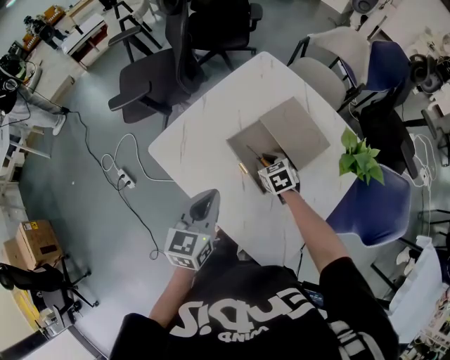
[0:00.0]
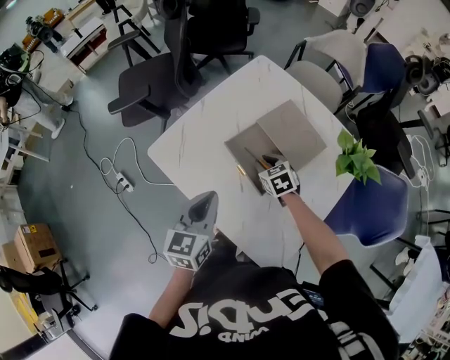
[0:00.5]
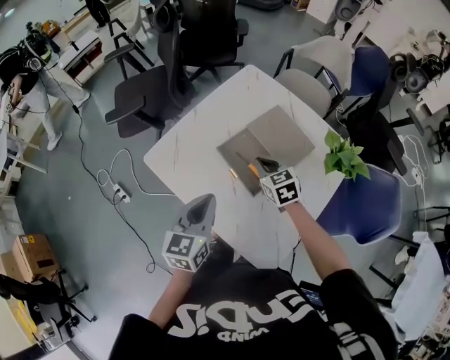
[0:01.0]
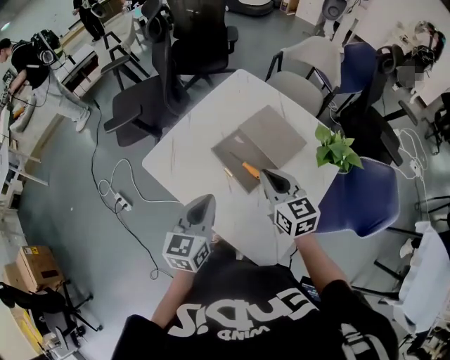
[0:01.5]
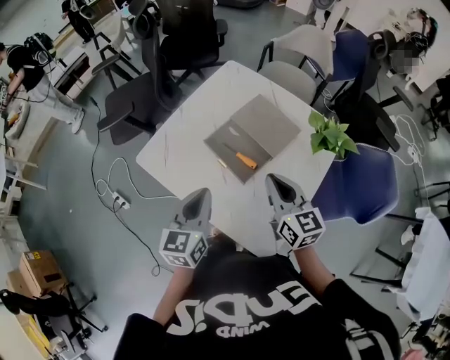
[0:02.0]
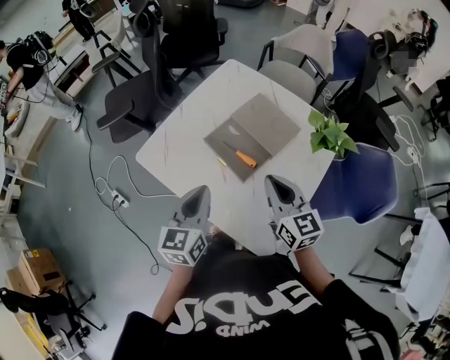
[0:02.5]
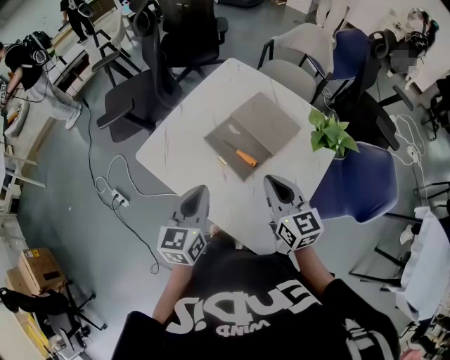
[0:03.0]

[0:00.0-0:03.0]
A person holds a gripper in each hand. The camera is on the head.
0:00.0 to 0:01.5: The left gripper shifts by some 5 cm. The right gripper goes approximately 25 cm upward and backward, and points its fingers approximately 30 degrees further upward.
0:01.5 to 0:03.0: The right gripper travels backward by about 5 cm.

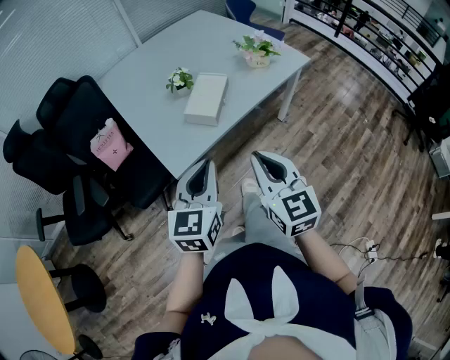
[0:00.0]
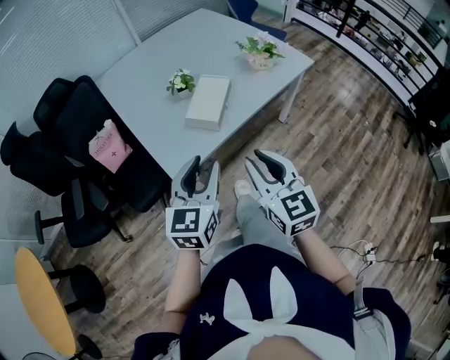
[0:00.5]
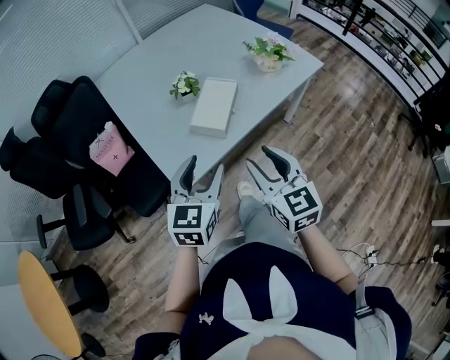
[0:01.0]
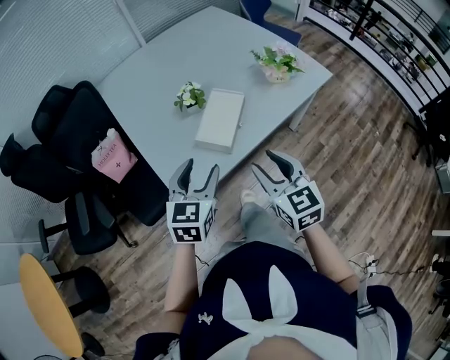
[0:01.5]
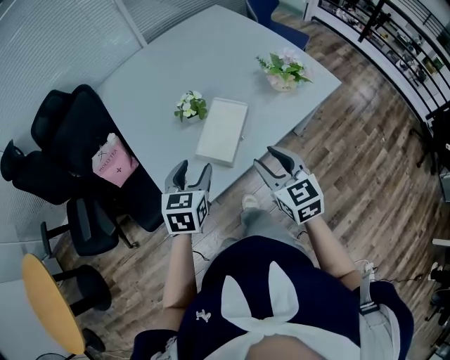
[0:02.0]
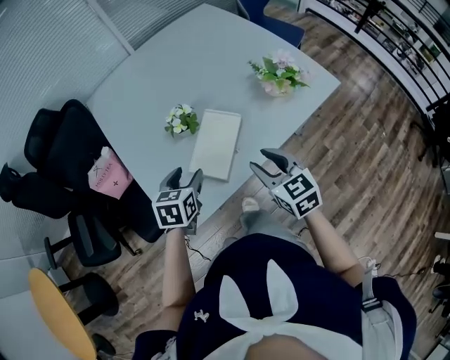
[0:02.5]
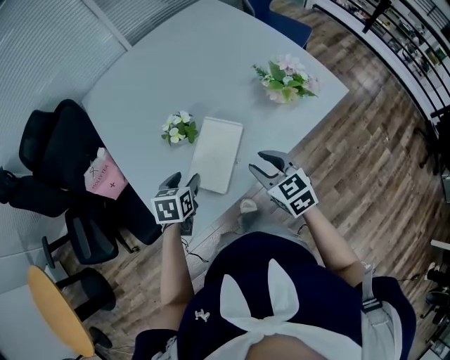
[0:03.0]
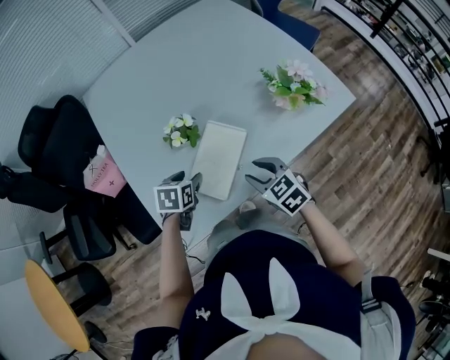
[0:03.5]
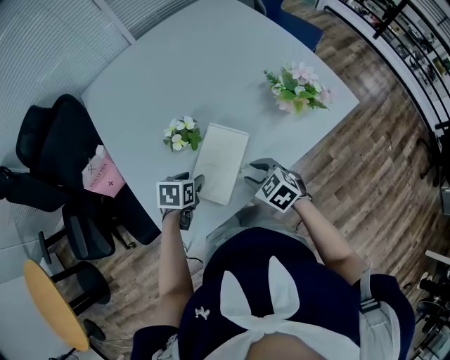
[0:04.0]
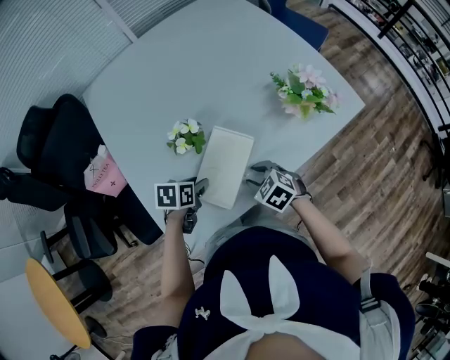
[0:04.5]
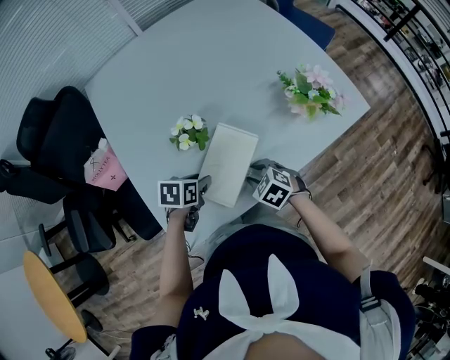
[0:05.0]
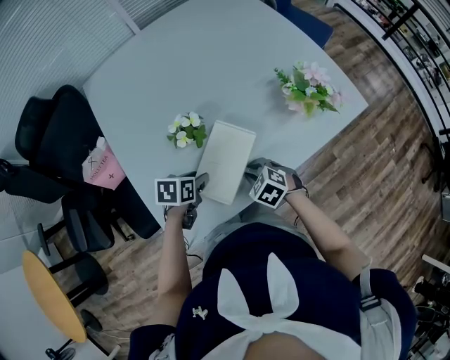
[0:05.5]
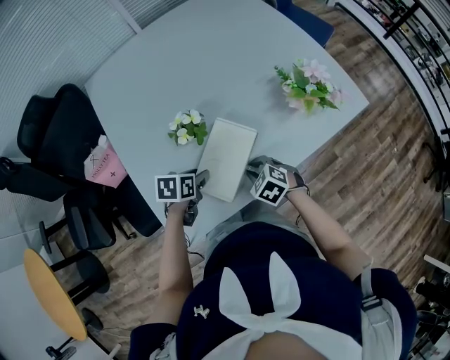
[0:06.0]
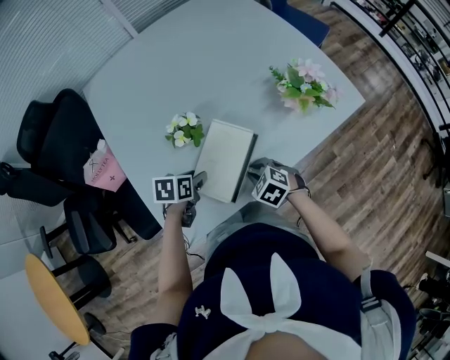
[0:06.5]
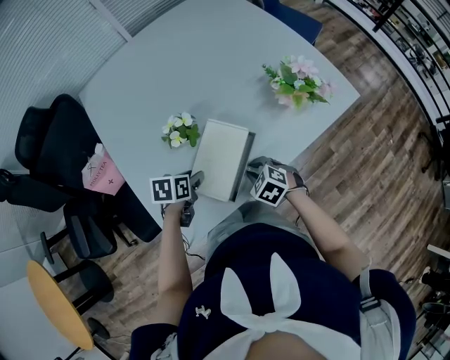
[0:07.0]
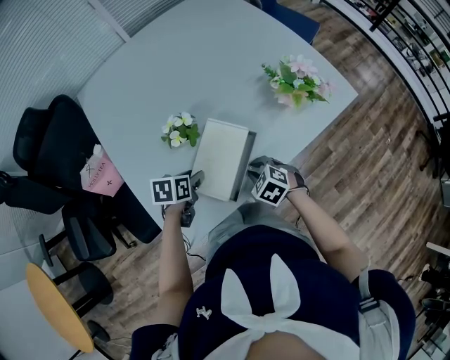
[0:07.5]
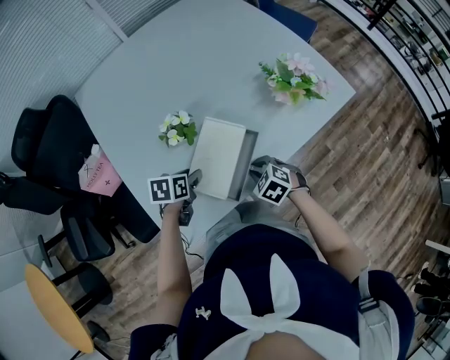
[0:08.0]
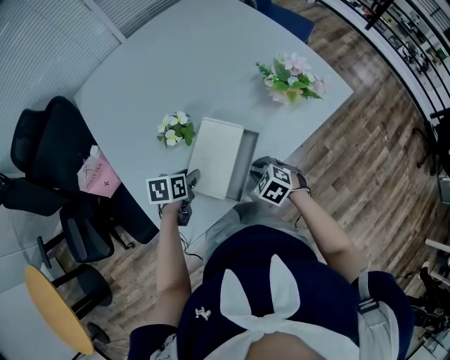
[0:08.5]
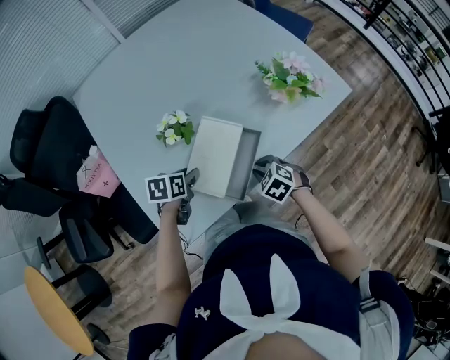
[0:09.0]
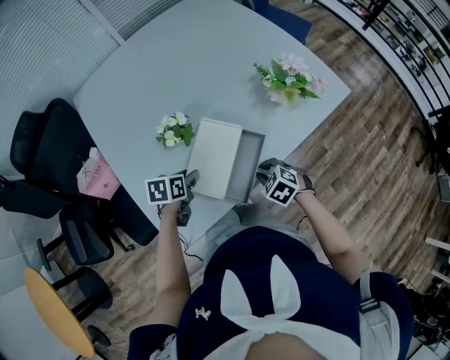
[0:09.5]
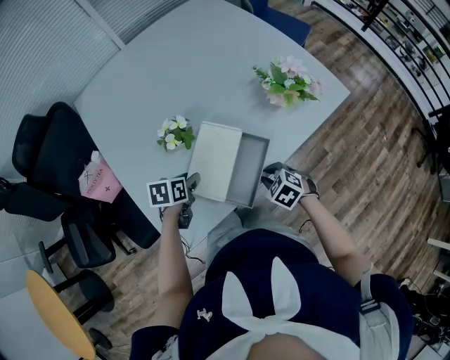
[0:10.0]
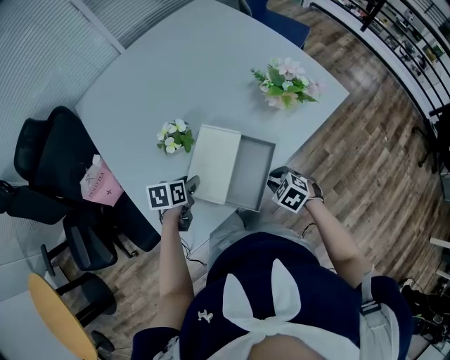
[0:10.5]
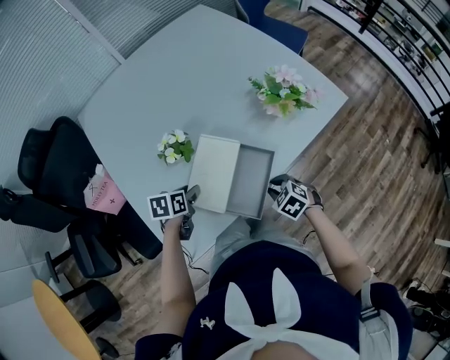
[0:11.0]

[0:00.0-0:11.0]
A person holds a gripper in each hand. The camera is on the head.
0:00.0 to 0:02.0: Both grippers travel together forward, approximately 25 cm. The left gripper swivels some 20 degrees, and opens up; the right gripper opens.
0:02.0 to 0:03.5: The grippers both shift downward and forward by about 20 cm. The left gripper swivels about 30 degrees. Meanwhile the right gripper turns by some 30 degrees.
0:03.5 to 0:05.5: The right gripper moves downward, some 10 cm, swivels roughly 20 degrees, and closes its fingers.
0:05.5 to 0:07.5: The grippers stay close to where they were, moving slightly.
0:07.5 to 0:09.0: The grippers make only small movements.
0:09.0 to 0:11.0: The right gripper ends up about 5 cm from where it was.

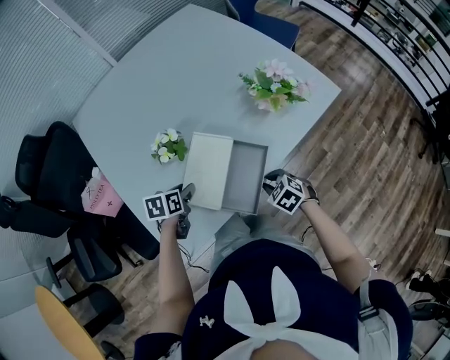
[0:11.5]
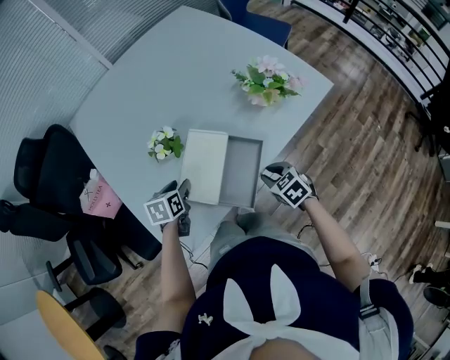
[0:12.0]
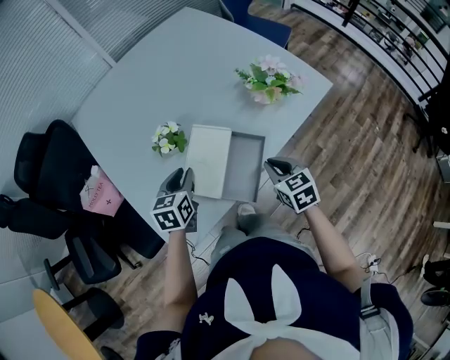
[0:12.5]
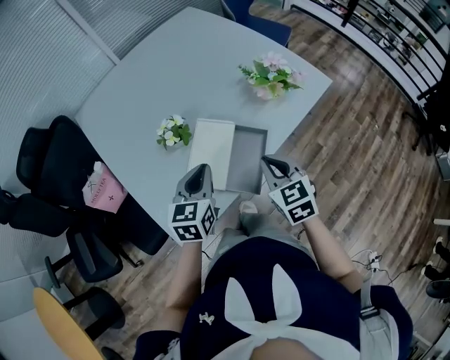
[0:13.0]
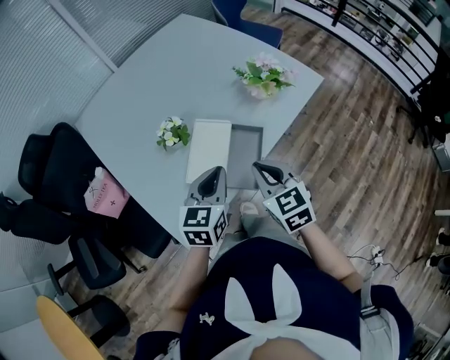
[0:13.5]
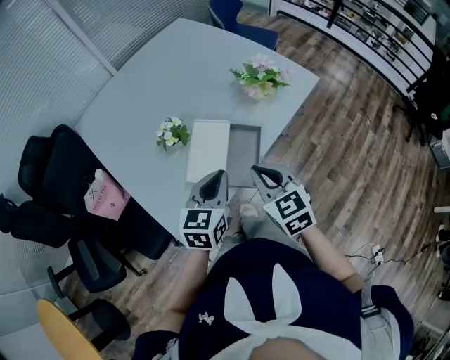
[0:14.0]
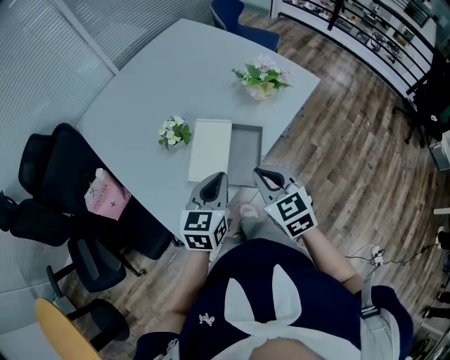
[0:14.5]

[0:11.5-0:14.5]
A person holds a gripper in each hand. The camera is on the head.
0:11.5 to 0:13.0: The right gripper is displaced upward by roughly 20 cm, and rotates approximately 40 degrees. Meanwhile the left gripper is displaced upward and to the right by roughly 20 cm, turns by about 40 degrees, and closes up.
0:13.0 to 0:14.5: Both grippers move backward, some 5 cm.

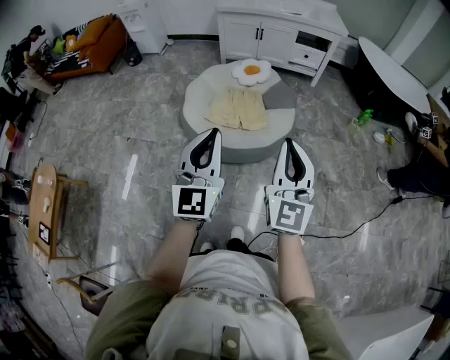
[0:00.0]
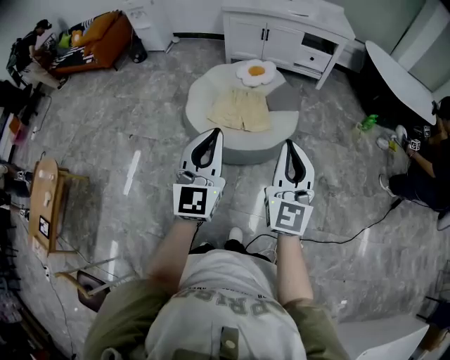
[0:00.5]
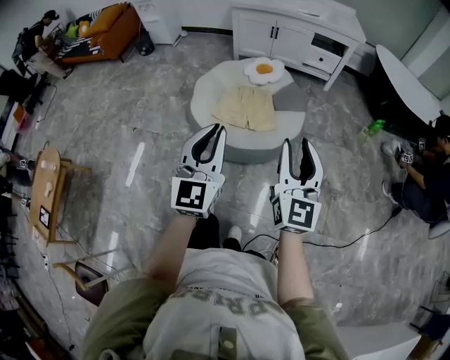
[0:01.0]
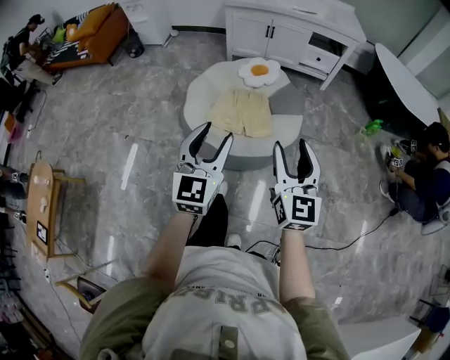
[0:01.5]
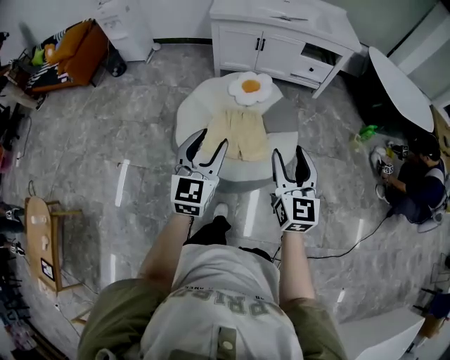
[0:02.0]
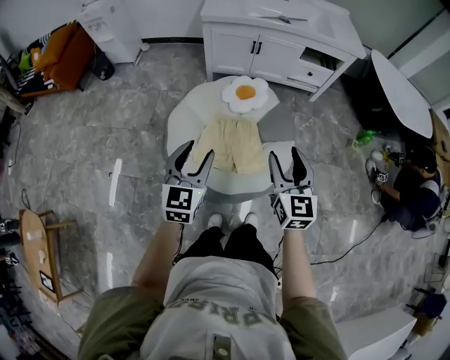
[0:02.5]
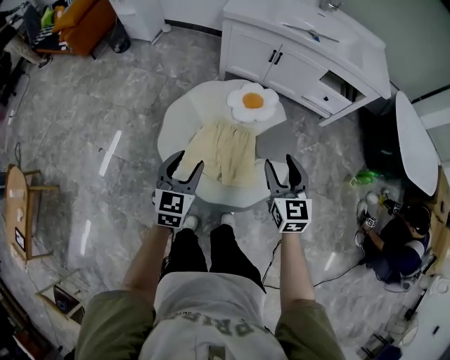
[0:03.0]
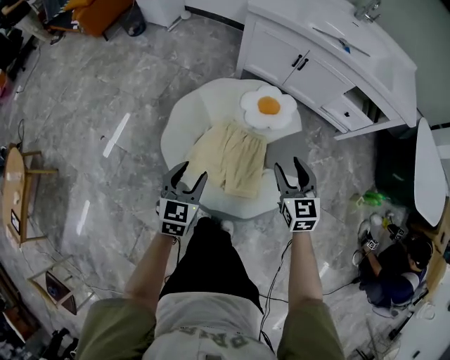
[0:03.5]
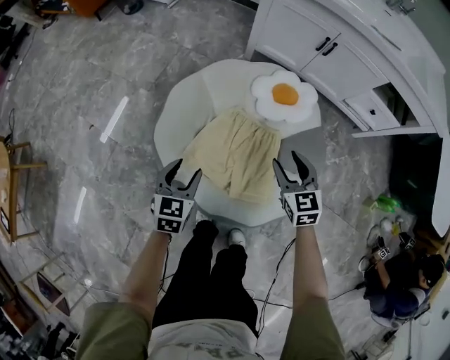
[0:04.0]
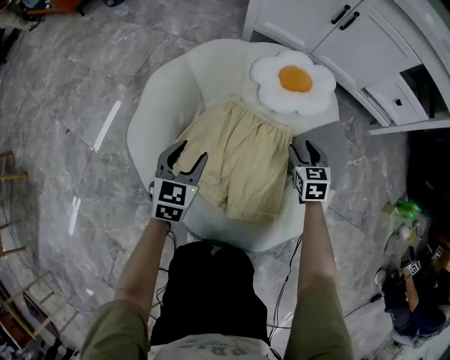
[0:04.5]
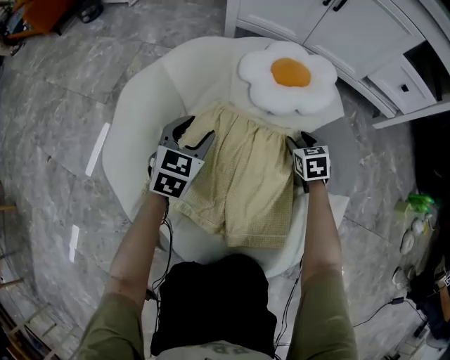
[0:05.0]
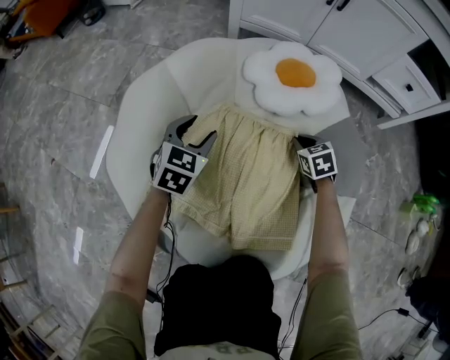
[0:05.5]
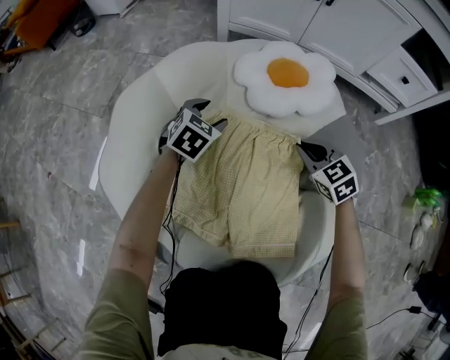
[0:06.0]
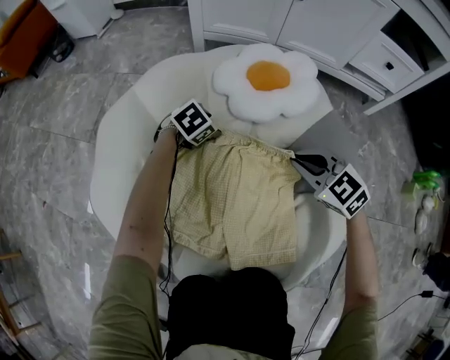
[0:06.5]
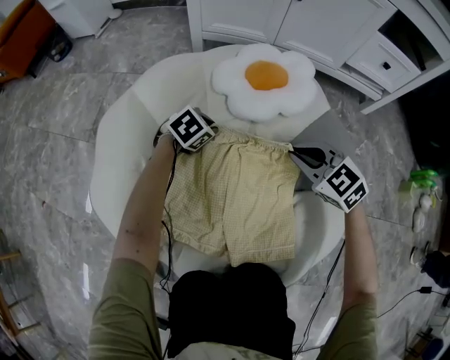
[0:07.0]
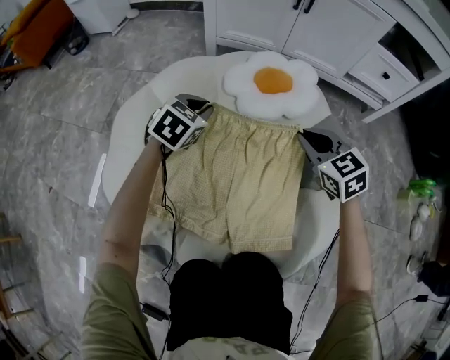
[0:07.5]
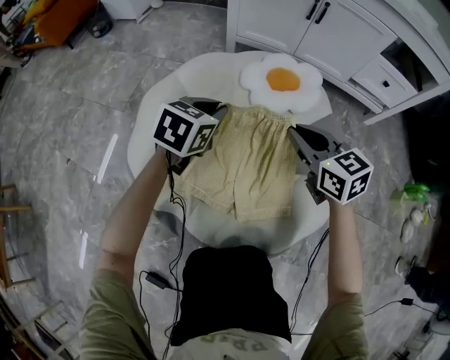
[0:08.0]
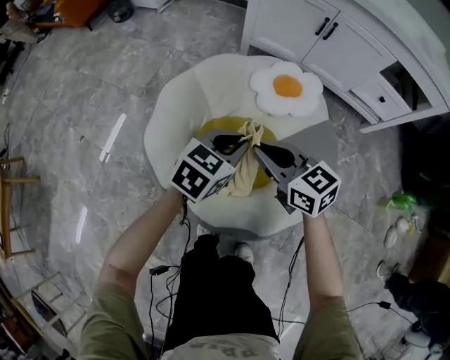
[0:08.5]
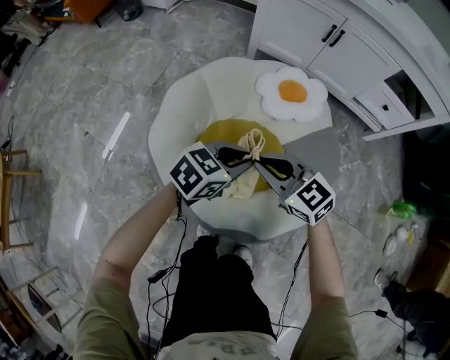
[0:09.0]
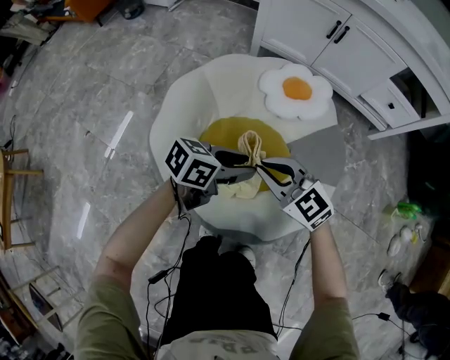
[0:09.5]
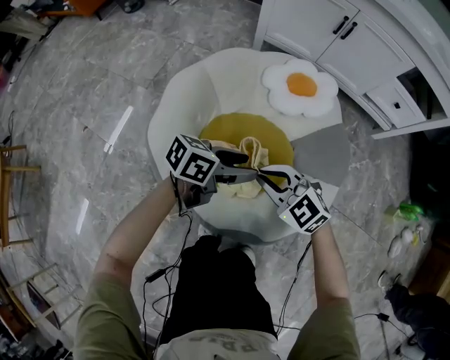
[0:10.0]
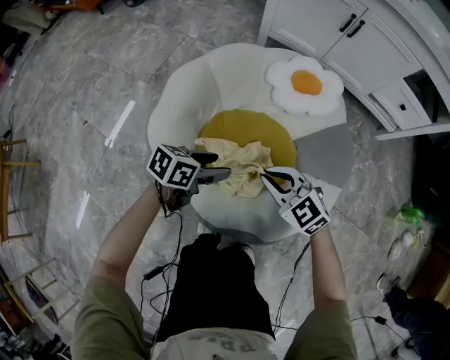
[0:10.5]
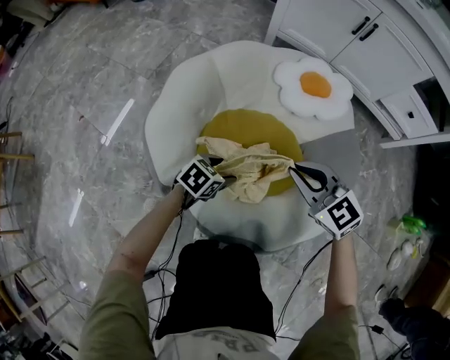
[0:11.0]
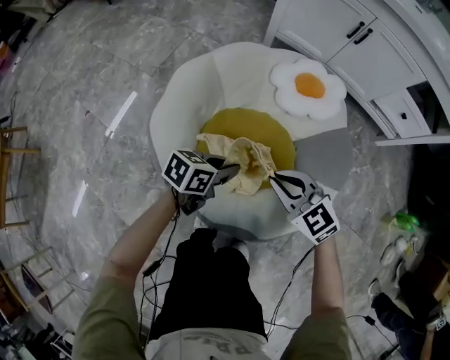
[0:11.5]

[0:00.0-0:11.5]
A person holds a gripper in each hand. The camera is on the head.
0:00.0 to 0:02.0: Both grippers move forward, some 30 cm. The right gripper opens. Meanwhile the left gripper opens its fingers.
0:02.0 to 0:04.0: The grippers both shift downward by some 40 cm. The left gripper turns by about 40 degrees; the right gripper rotates roughly 40 degrees.
0:04.0 to 0:06.0: The left gripper goes some 40 cm downward and forward, and rotates some 30 degrees. Meanwhile the right gripper moves downward, roughly 35 cm, and closes its fingers.
0:06.0 to 0:07.5: The two grippers go about 10 cm upward. The left gripper closes its fingers.
0:07.5 to 0:09.5: The left gripper changes place by about 30 cm, turns by approximately 50 degrees, and opens up. Meanwhile the right gripper shifts by roughly 30 cm, and swivels approximately 30 degrees.
0:09.5 to 0:11.5: The left gripper moves downward, about 10 cm, and closes.
